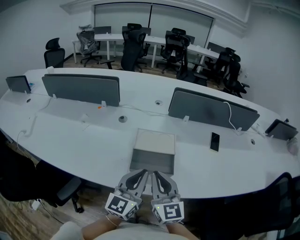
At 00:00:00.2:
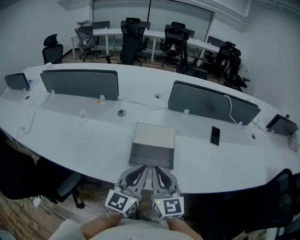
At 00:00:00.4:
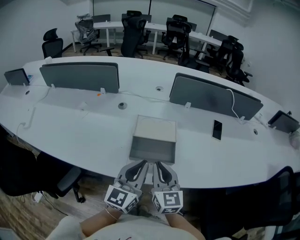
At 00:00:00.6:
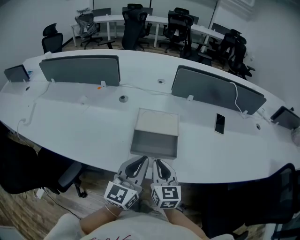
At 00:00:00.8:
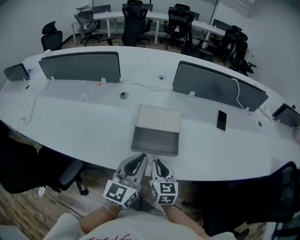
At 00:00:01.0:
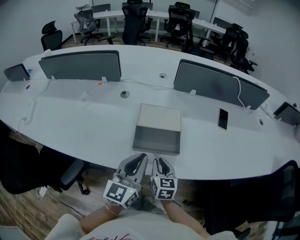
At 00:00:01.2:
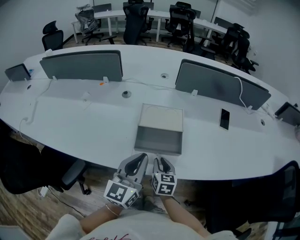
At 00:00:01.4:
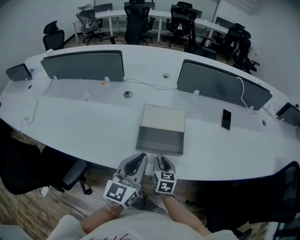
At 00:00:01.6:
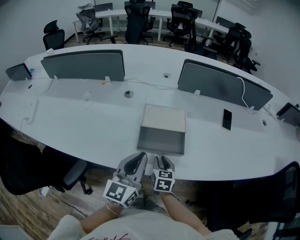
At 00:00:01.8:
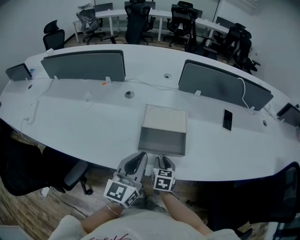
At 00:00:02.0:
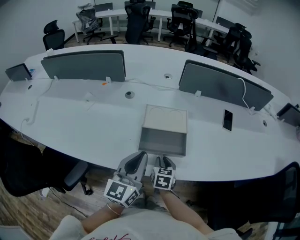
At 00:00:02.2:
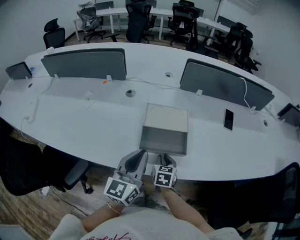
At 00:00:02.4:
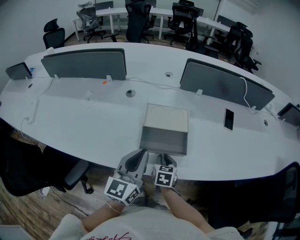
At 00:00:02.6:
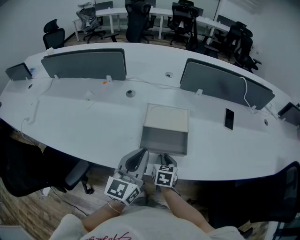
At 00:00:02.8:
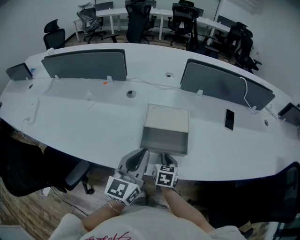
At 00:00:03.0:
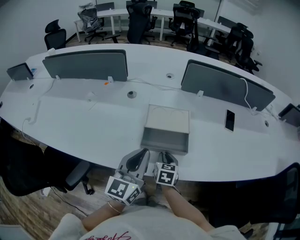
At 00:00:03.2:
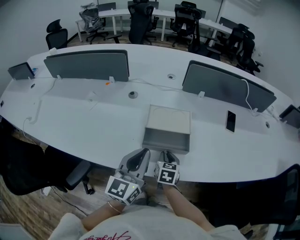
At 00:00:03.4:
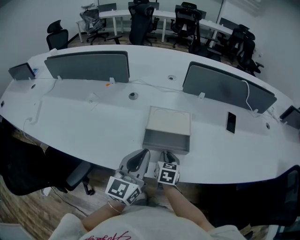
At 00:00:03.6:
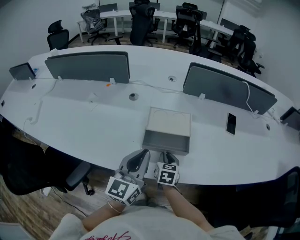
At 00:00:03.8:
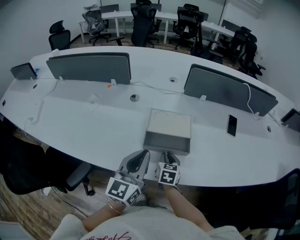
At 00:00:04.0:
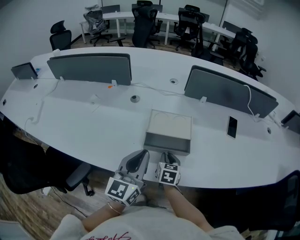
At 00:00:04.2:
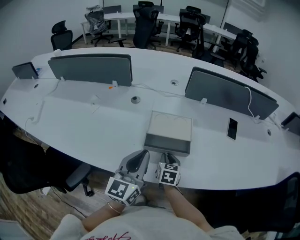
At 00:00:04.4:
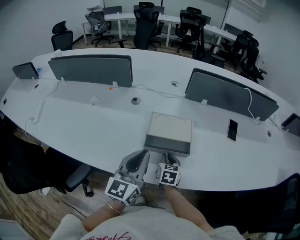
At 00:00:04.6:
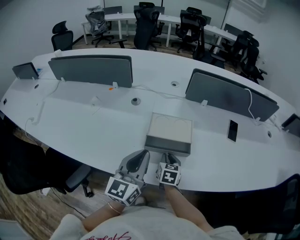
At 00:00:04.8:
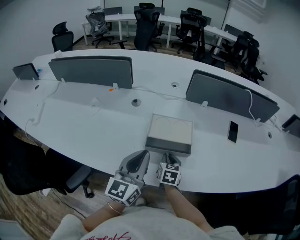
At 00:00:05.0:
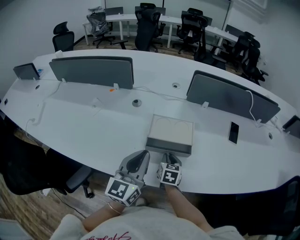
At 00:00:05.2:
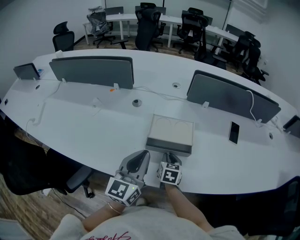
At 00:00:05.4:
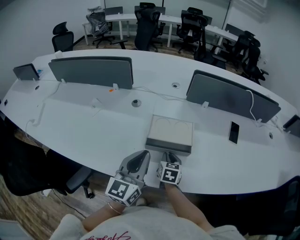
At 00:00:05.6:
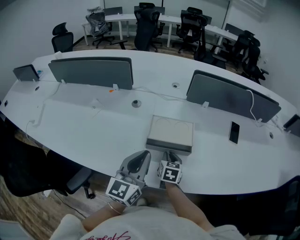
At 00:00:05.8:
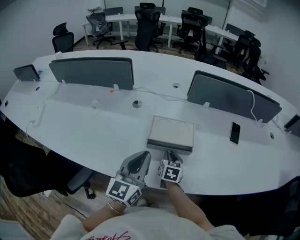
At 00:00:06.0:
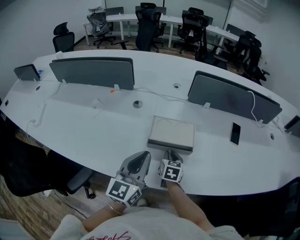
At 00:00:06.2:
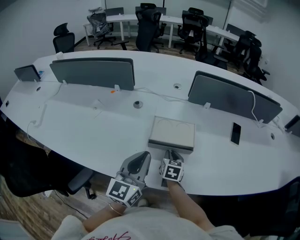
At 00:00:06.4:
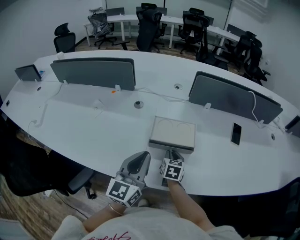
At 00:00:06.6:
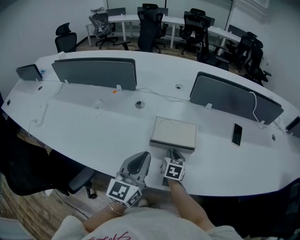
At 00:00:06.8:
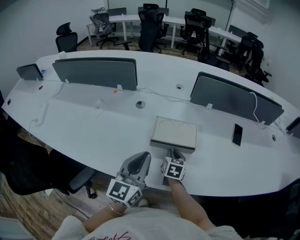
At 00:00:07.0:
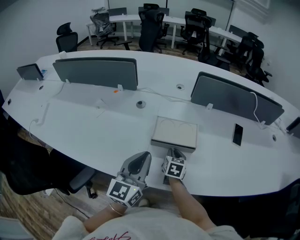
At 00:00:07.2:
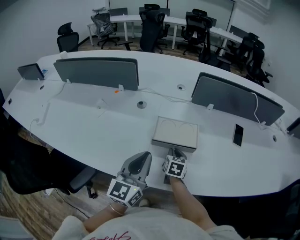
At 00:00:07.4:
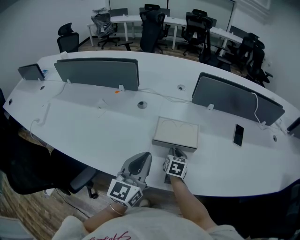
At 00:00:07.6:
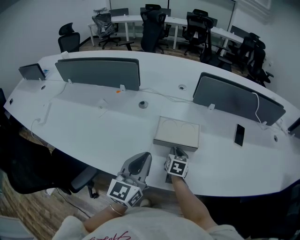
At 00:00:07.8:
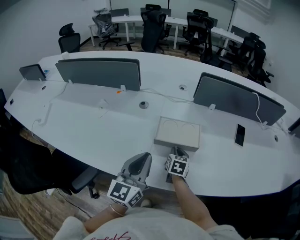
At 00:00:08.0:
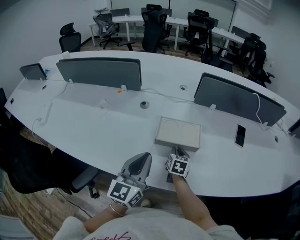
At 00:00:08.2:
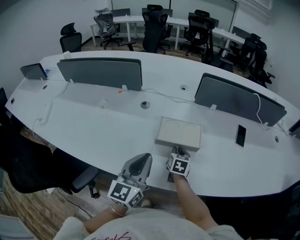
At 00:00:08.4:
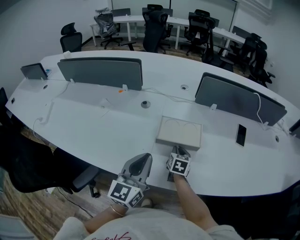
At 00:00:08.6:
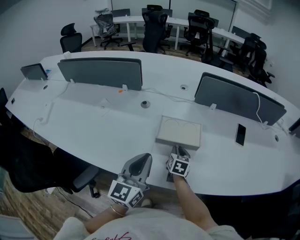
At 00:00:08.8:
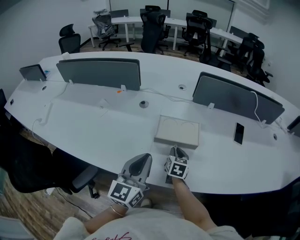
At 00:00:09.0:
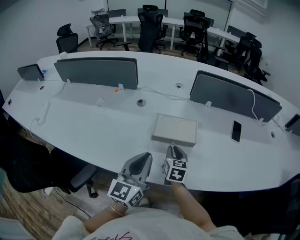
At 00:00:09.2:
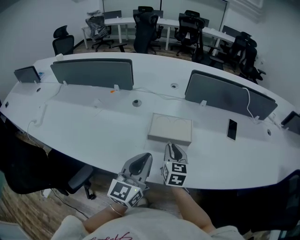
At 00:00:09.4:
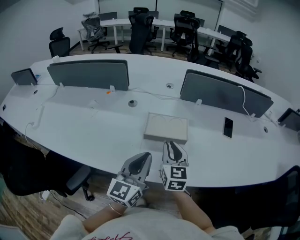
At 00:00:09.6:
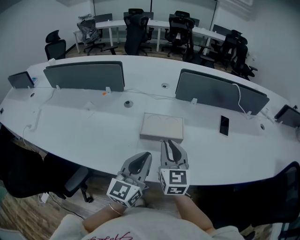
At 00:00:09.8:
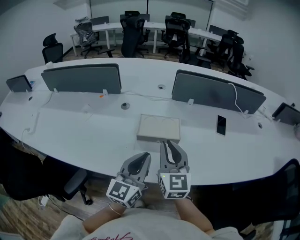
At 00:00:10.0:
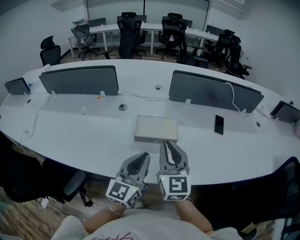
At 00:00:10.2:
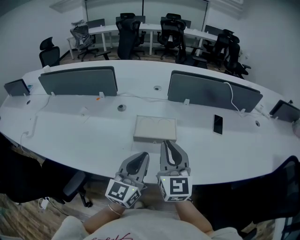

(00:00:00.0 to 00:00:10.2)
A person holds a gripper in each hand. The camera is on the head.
00:00:00.0 - 00:00:01.4: The right gripper goes some 20 cm downward, and angles its fingers downward, by roughly 30 degrees.
00:00:01.4 - 00:00:03.0: The grippers stay close to where they were, moving slightly.
00:00:03.0 - 00:00:04.4: The grippers make only small movements.
00:00:04.4 - 00:00:07.2: The grippers make only small movements.
00:00:07.2 - 00:00:08.8: There are only small adjustments of the grippers.
00:00:08.8 - 00:00:10.2: The left gripper travels to the right by some 5 cm, while the right gripper shifts roughly 25 cm upward, and tilts its fingers some 40 degrees upward.

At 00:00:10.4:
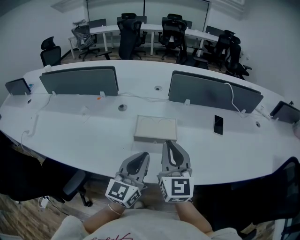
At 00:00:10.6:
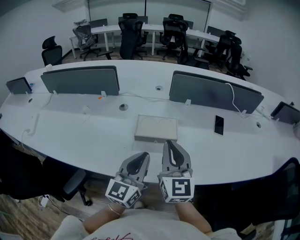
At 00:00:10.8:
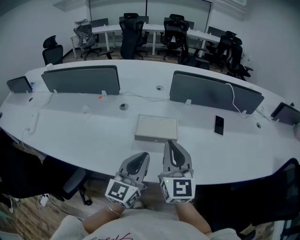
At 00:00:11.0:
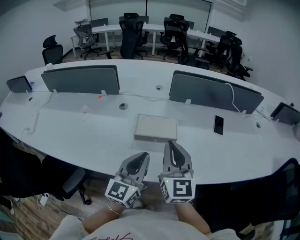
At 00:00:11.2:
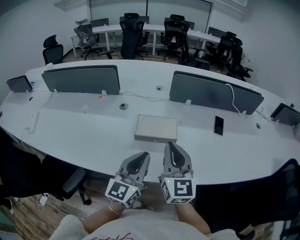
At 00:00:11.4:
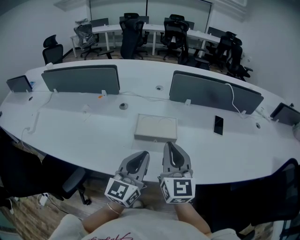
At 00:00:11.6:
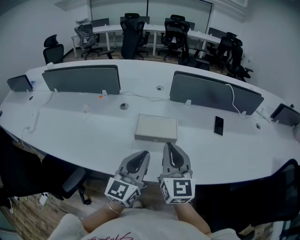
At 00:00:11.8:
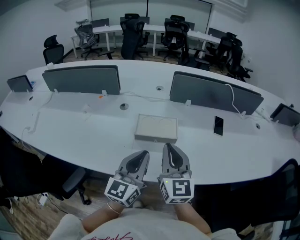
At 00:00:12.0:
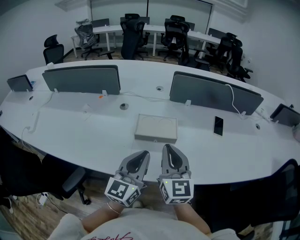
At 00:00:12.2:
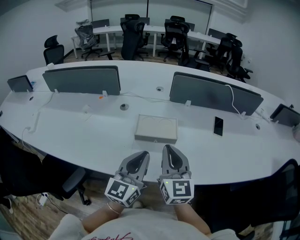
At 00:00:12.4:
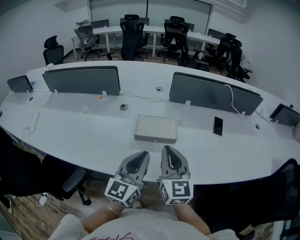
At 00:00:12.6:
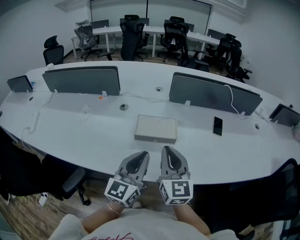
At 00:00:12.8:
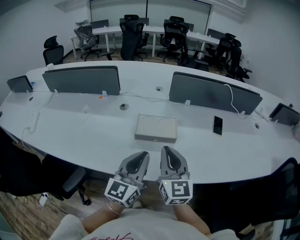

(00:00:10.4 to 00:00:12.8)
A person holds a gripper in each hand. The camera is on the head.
00:00:10.4 - 00:00:11.6: Neither gripper changes place.
00:00:11.6 - 00:00:12.8: The grippers stay close to where they were, moving slightly.

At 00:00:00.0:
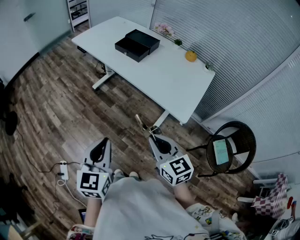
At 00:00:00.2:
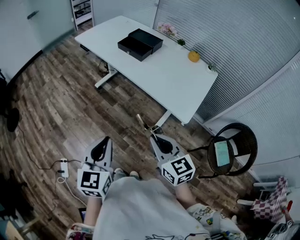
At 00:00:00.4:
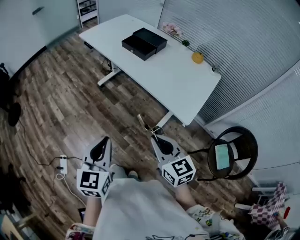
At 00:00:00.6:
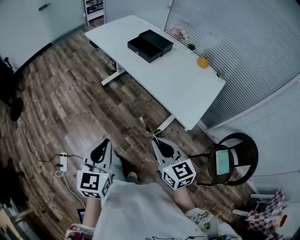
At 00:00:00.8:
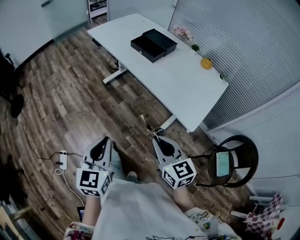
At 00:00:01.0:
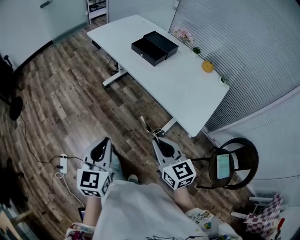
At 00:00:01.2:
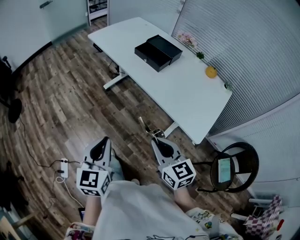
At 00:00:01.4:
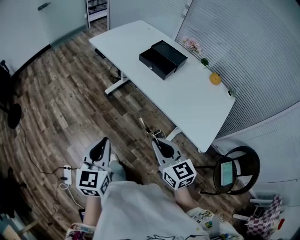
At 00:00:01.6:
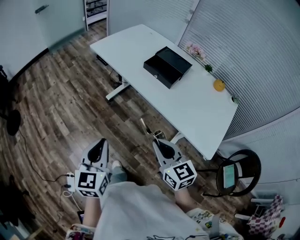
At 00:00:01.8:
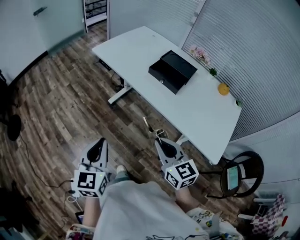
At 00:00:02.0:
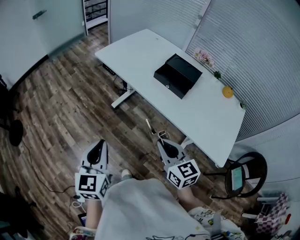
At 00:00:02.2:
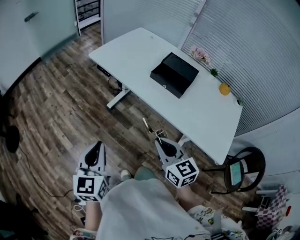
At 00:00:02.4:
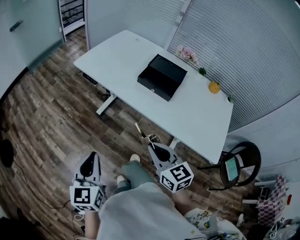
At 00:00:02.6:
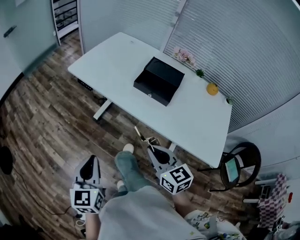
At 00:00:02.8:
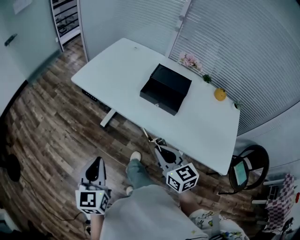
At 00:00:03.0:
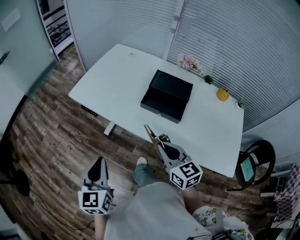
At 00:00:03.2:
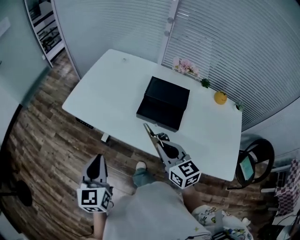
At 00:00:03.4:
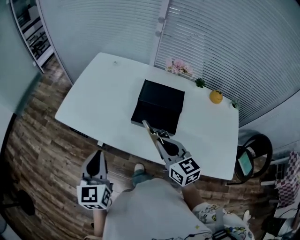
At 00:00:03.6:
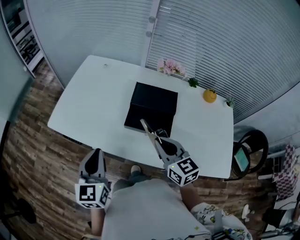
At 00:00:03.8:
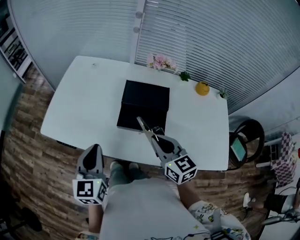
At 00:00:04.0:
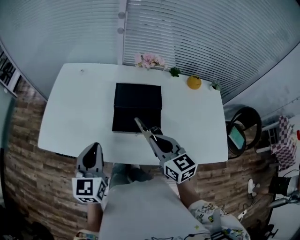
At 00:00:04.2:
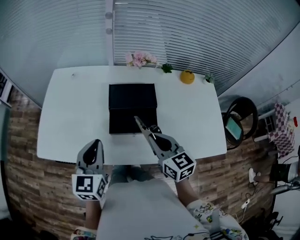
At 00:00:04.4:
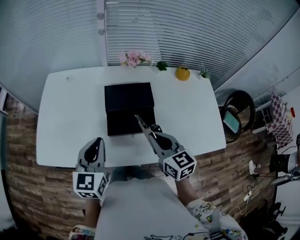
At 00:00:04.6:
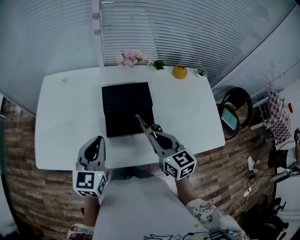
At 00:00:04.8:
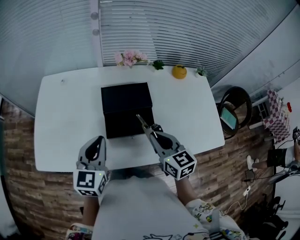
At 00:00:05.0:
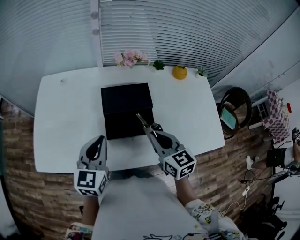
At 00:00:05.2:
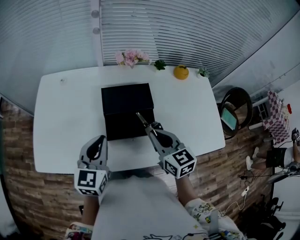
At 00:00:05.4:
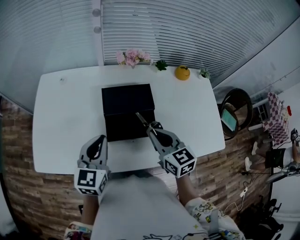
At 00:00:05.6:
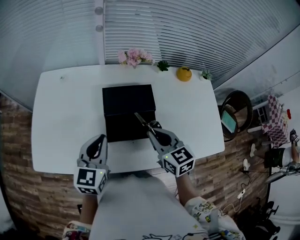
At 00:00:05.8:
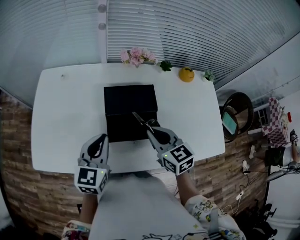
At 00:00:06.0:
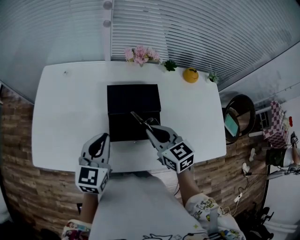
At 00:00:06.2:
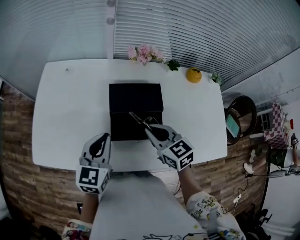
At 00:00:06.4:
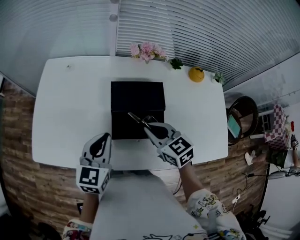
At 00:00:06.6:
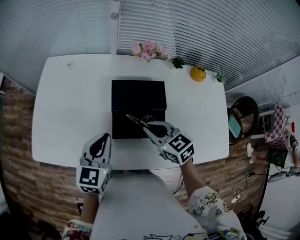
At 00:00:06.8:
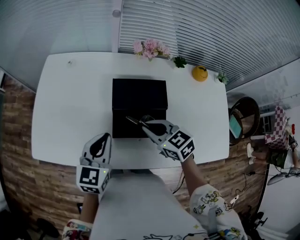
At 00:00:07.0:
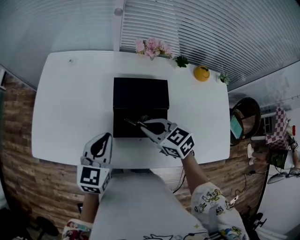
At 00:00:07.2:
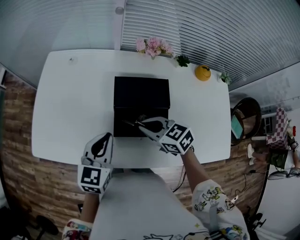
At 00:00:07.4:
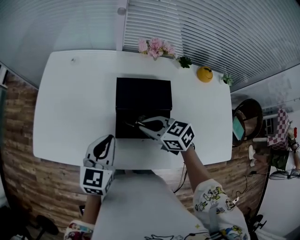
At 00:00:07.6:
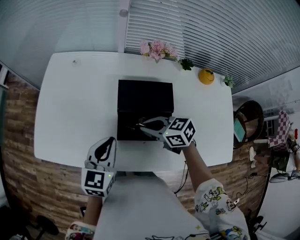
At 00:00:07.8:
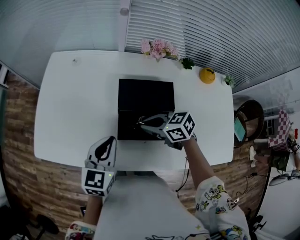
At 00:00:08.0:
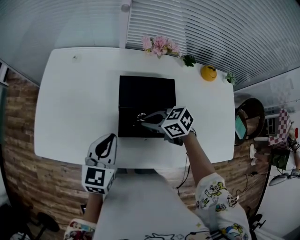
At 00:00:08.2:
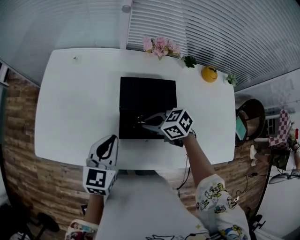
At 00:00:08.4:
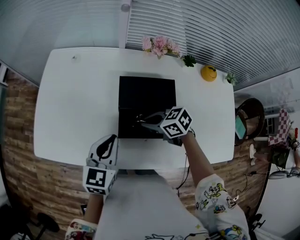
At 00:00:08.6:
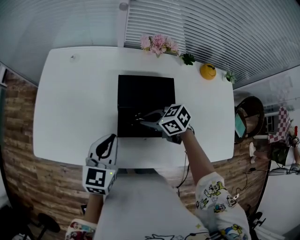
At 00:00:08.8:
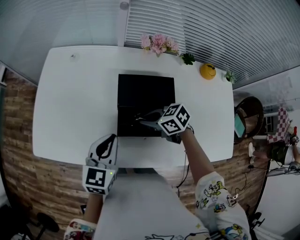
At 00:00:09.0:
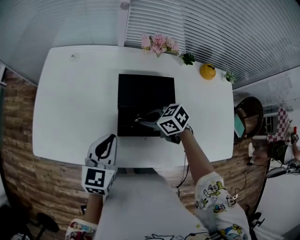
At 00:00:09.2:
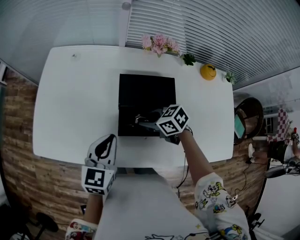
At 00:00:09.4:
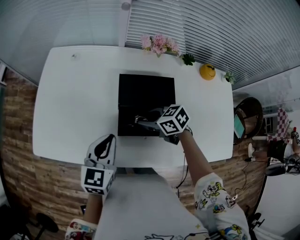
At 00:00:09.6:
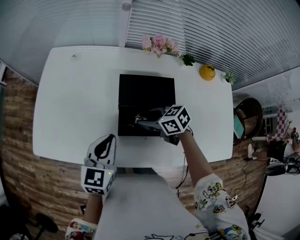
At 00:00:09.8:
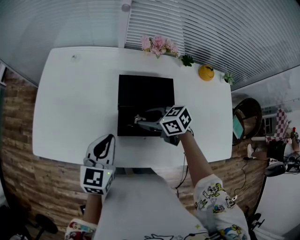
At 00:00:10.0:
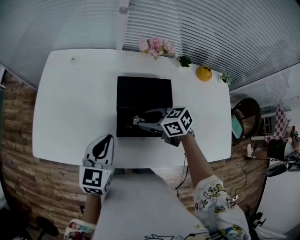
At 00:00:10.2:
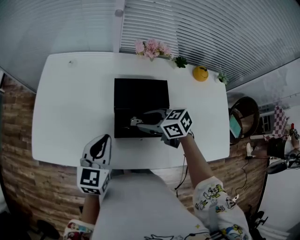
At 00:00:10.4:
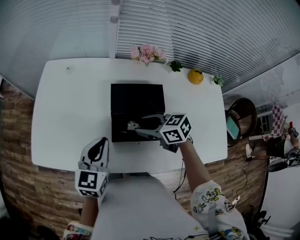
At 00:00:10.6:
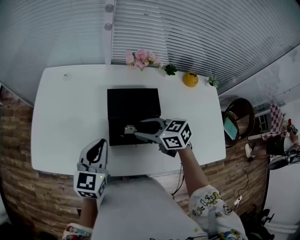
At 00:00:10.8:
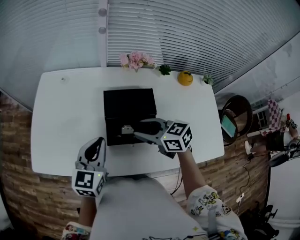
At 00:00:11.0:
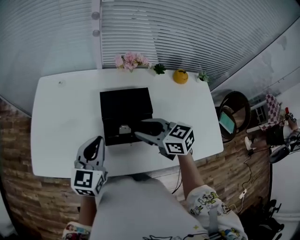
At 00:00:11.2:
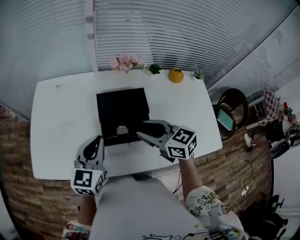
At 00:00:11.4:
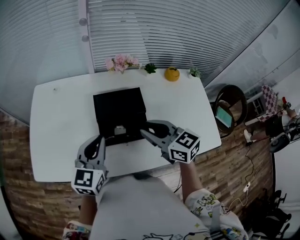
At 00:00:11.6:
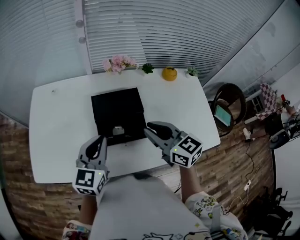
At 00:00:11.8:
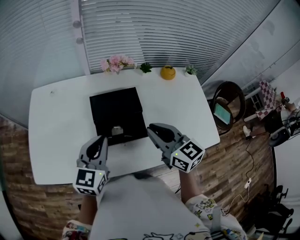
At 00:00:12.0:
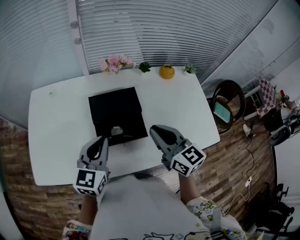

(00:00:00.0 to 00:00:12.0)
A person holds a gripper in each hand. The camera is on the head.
00:00:00.0 - 00:00:01.6: The two grippers go about 25 cm forward and to the left.
00:00:01.6 - 00:00:03.0: The grippers both shift forward by about 25 cm.
00:00:03.0 - 00:00:04.4: The left gripper shifts by roughly 30 cm, and swivels roughly 40 degrees. Meanwhile the right gripper moves about 15 cm, and changes its angle by some 30 degrees.
00:00:04.4 - 00:00:06.0: Both grippers move forward, roughly 5 cm.
00:00:06.0 - 00:00:07.6: The right gripper goes approximately 10 cm downward and to the left, and turns by some 40 degrees.
00:00:07.6 - 00:00:09.0: The grippers move only a little.
00:00:09.0 - 00:00:10.4: The right gripper moves upward, approximately 5 cm, and opens.
00:00:10.4 - 00:00:12.0: The left gripper moves some 10 cm. Meanwhile the right gripper is displaced upward by roughly 15 cm, swivels roughly 50 degrees, and closes up.
